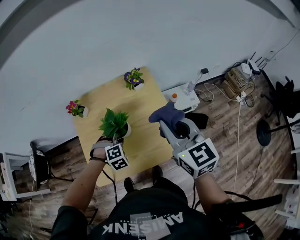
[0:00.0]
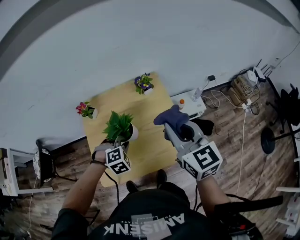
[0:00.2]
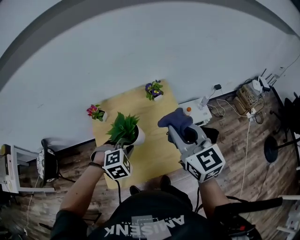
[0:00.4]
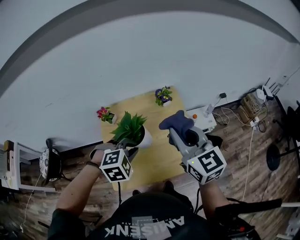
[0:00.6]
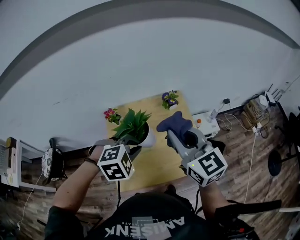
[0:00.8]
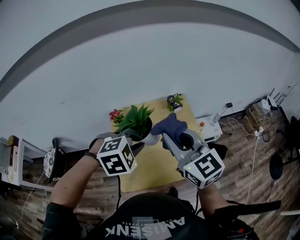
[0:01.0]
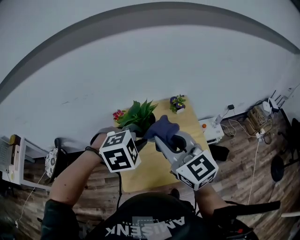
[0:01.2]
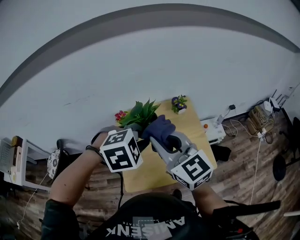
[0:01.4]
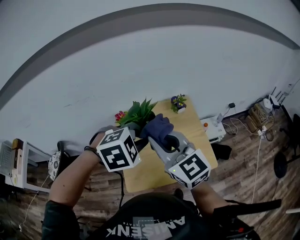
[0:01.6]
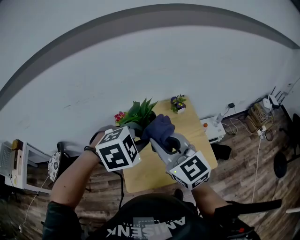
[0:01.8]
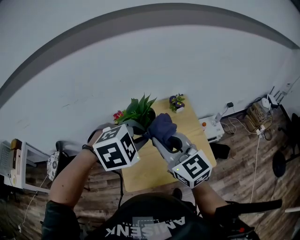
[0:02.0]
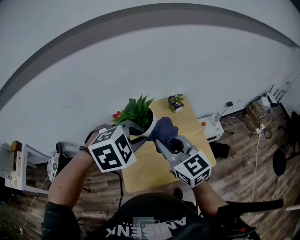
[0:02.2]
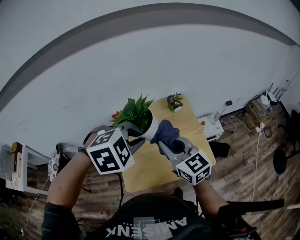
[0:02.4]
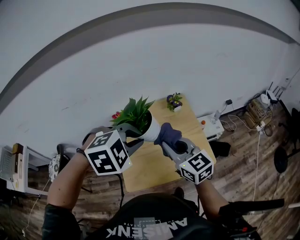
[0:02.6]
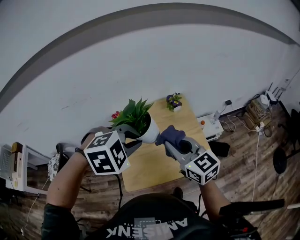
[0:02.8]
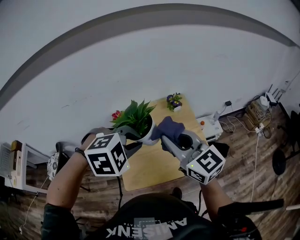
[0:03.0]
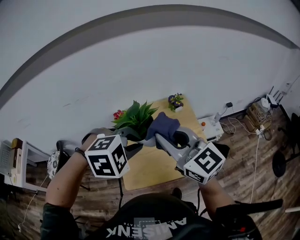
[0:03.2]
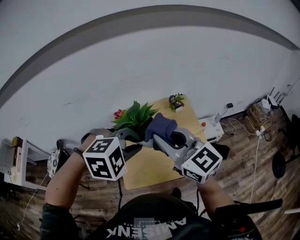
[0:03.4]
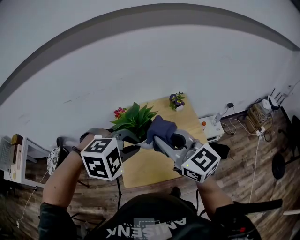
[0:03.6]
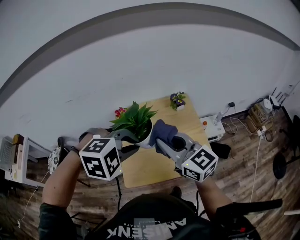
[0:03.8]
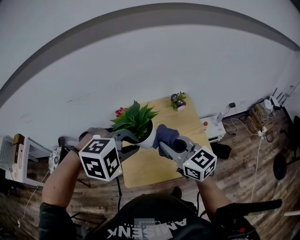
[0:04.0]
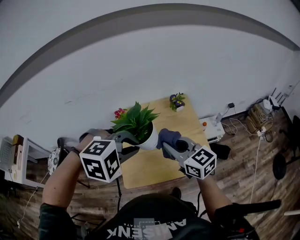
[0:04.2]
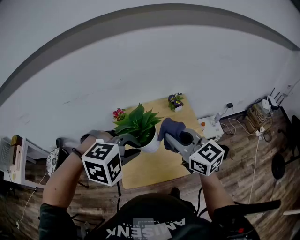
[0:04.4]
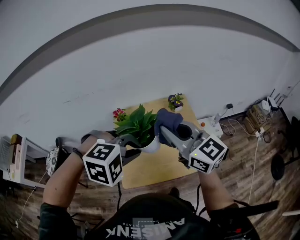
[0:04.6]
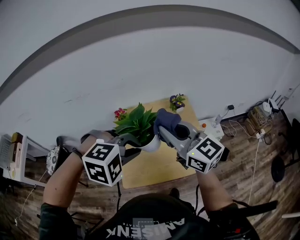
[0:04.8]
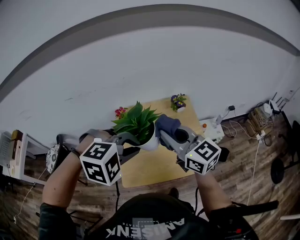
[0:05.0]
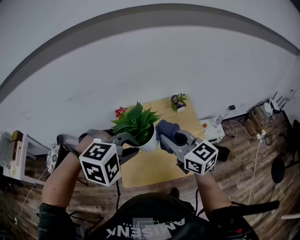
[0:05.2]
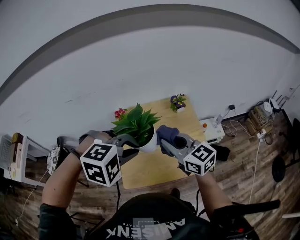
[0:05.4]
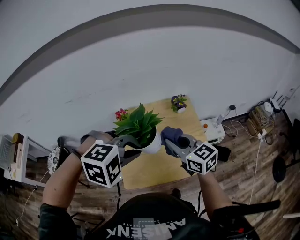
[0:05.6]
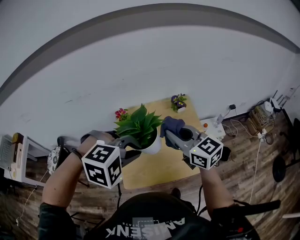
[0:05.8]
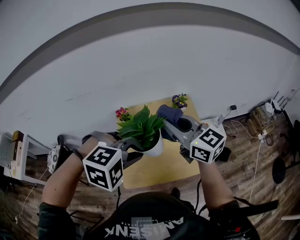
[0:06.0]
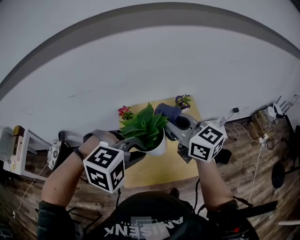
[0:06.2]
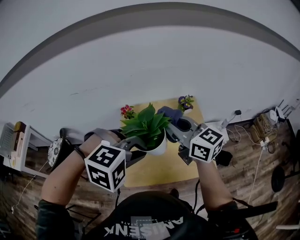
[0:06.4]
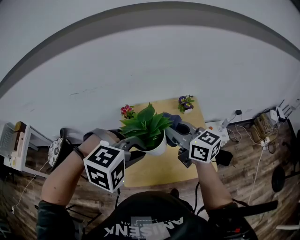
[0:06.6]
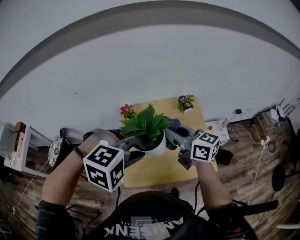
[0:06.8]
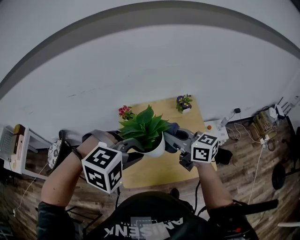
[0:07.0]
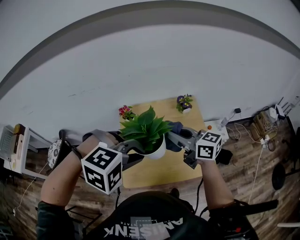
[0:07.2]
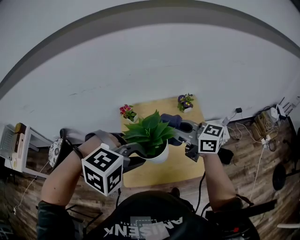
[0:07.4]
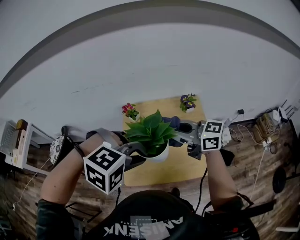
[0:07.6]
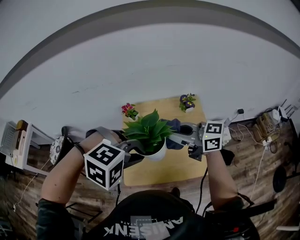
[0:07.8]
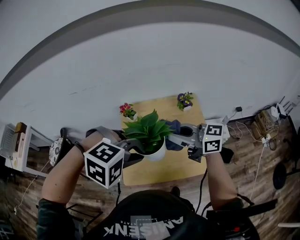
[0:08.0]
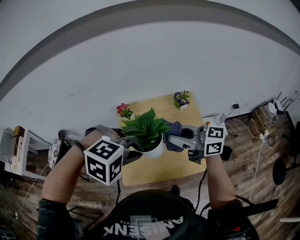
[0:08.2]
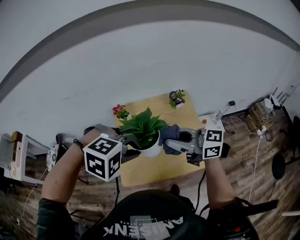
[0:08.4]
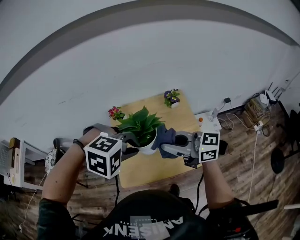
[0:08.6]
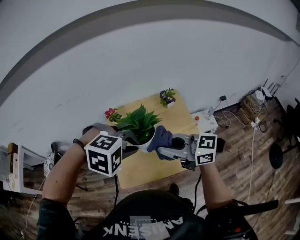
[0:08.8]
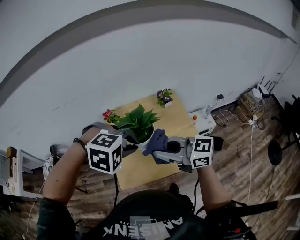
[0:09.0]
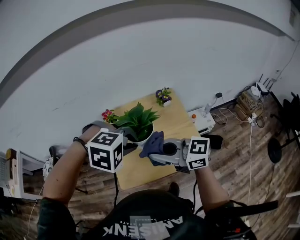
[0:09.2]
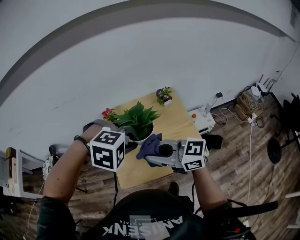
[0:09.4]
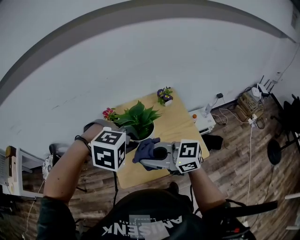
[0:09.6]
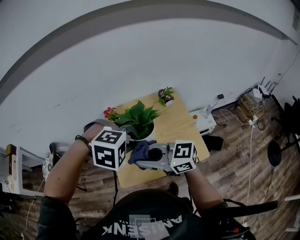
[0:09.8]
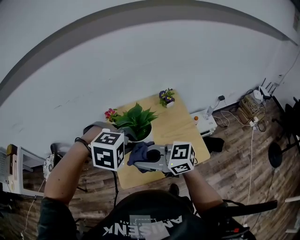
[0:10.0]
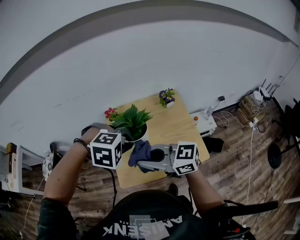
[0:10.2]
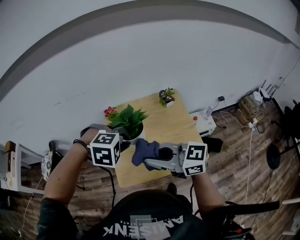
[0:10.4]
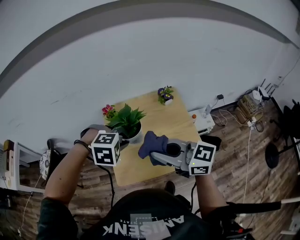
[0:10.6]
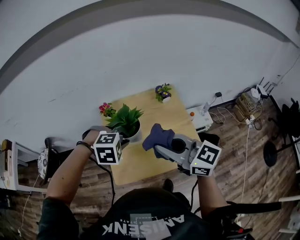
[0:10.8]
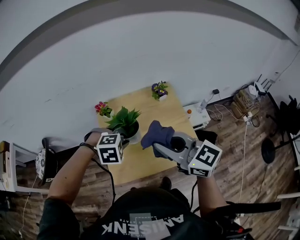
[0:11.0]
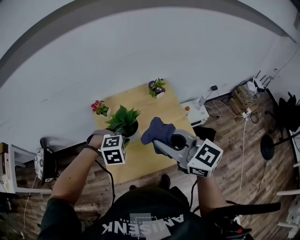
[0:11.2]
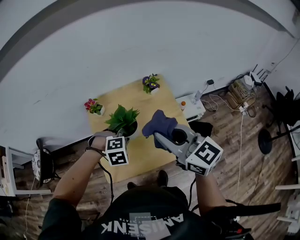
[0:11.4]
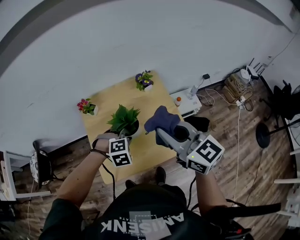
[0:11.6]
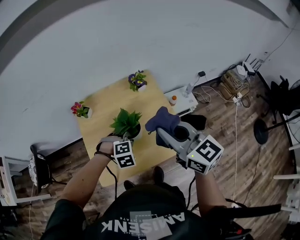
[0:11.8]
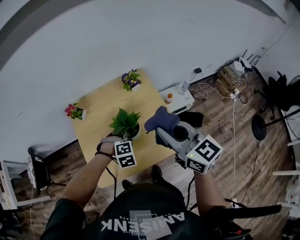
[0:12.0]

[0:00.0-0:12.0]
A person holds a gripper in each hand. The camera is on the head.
0:00.0 to 0:01.6: The right gripper shifts some 25 cm to the left and upward, and turns by some 30 degrees, while the left gripper heads upward, covering about 30 cm.
0:01.6 to 0:03.0: The right gripper goes some 5 cm to the right, and moves approximately 10 cm downward and comes back.
0:03.0 to 0:04.4: The right gripper reaches approximately 10 cm downward, then returns.
0:04.4 to 0:06.0: The right gripper goes up and down, approximately 10 cm each way, reversing 2 times.
0:06.0 to 0:07.6: The right gripper shifts roughly 5 cm downward, and swivels some 30 degrees.
0:07.6 to 0:09.0: The left gripper shifts by about 5 cm. Meanwhile the right gripper ends up some 10 cm from where it was.
0:09.0 to 0:10.4: The left gripper ends up about 5 cm from where it was.
0:10.4 to 0:12.0: The right gripper travels to the right by approximately 20 cm, and rotates some 40 degrees. The left gripper goes some 25 cm downward and to the right.

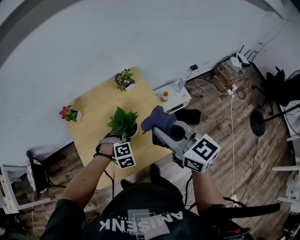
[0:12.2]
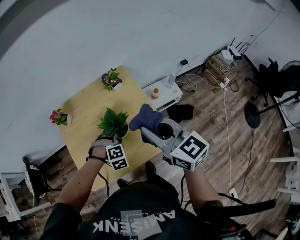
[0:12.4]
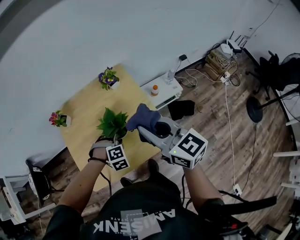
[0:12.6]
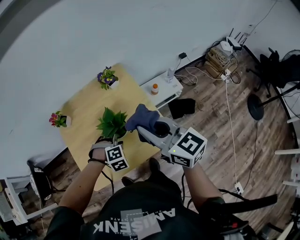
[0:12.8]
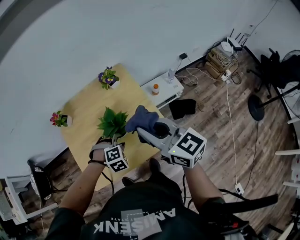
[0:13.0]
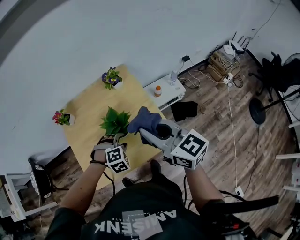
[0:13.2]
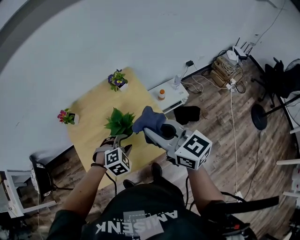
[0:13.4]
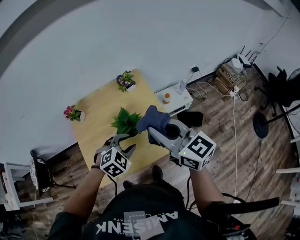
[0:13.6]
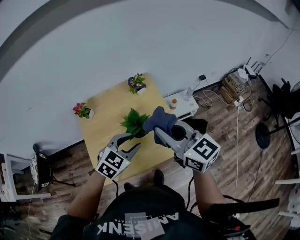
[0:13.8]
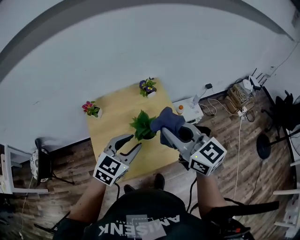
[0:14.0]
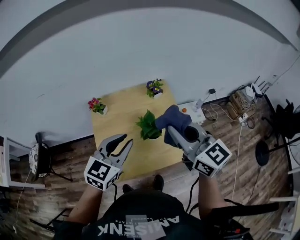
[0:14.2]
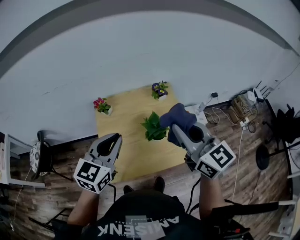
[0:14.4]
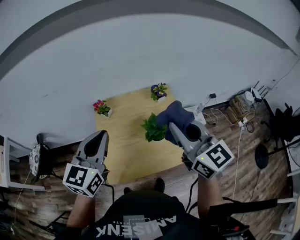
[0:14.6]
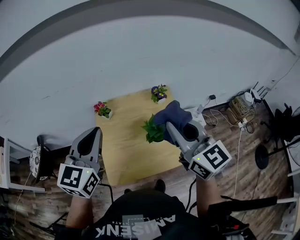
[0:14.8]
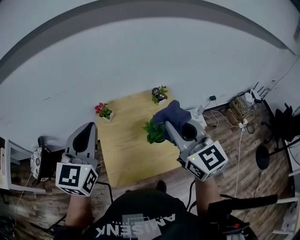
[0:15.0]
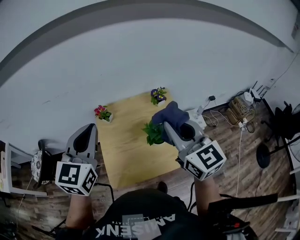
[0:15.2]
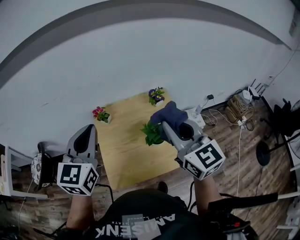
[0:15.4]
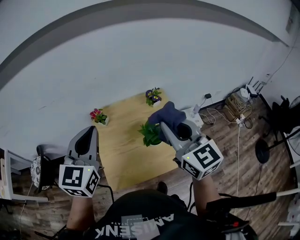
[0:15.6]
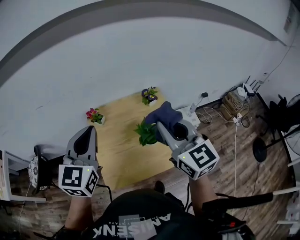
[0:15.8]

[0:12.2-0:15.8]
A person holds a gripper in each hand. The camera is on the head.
0:12.2 to 0:14.0: The right gripper shifts some 5 cm to the left and upward. The left gripper goes about 20 cm upward, angles its fingers upward, by roughly 40 degrees, and opens up.
0:14.0 to 0:15.8: The right gripper is displaced upward by approximately 5 cm. The left gripper moves upward and to the left, roughly 25 cm, swivels approximately 40 degrees, and closes its fingers.

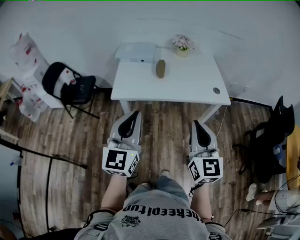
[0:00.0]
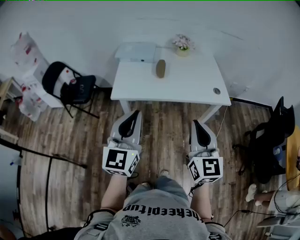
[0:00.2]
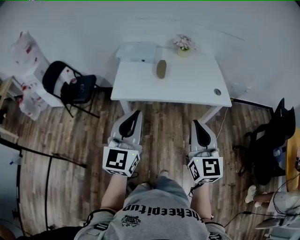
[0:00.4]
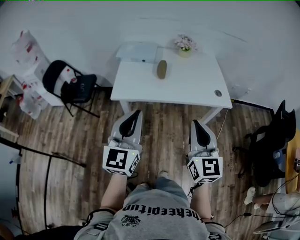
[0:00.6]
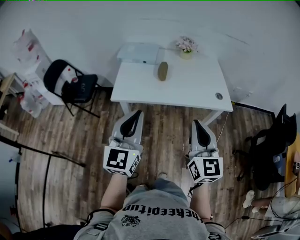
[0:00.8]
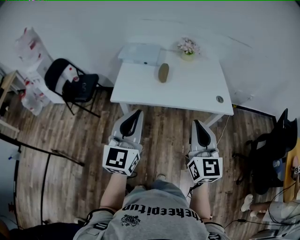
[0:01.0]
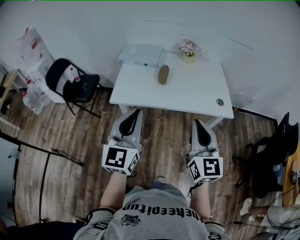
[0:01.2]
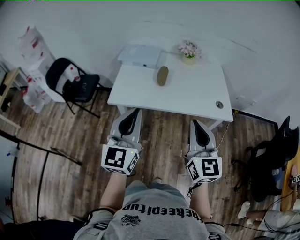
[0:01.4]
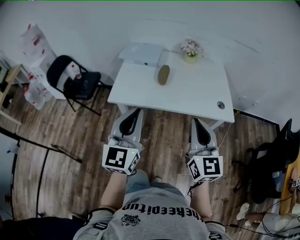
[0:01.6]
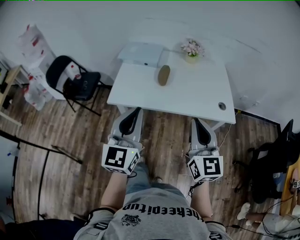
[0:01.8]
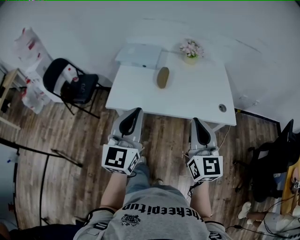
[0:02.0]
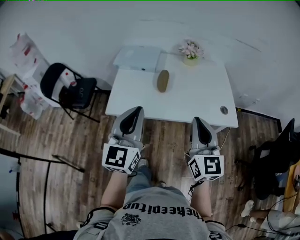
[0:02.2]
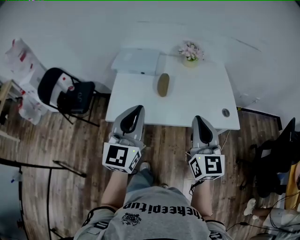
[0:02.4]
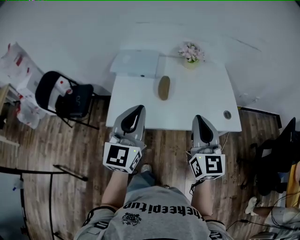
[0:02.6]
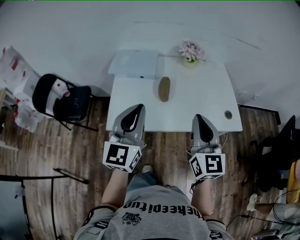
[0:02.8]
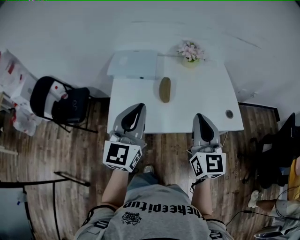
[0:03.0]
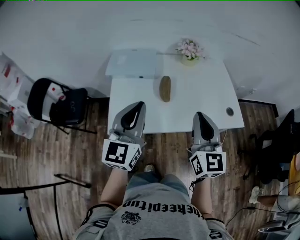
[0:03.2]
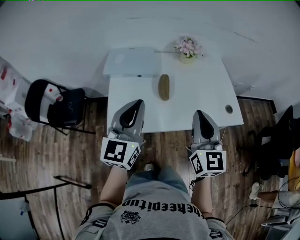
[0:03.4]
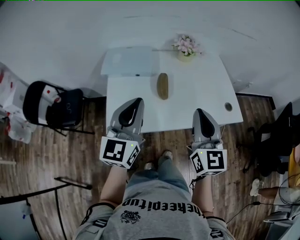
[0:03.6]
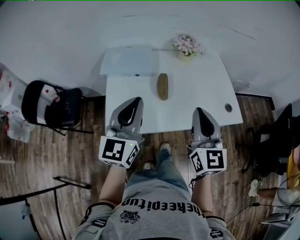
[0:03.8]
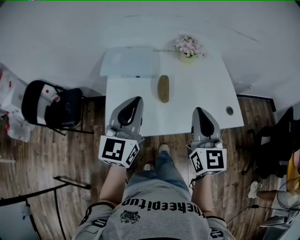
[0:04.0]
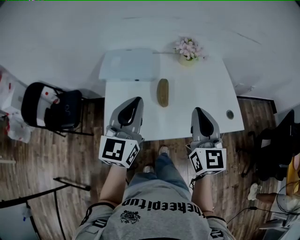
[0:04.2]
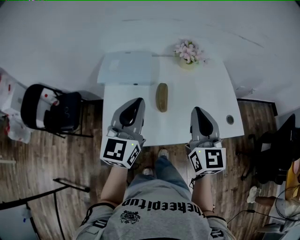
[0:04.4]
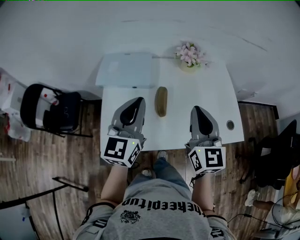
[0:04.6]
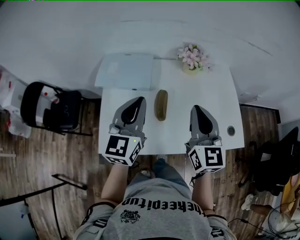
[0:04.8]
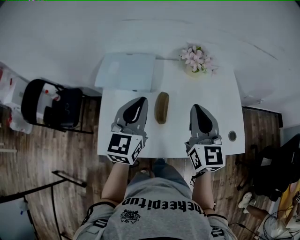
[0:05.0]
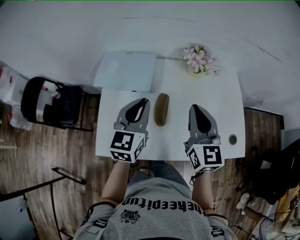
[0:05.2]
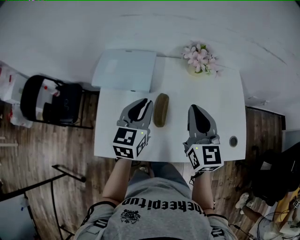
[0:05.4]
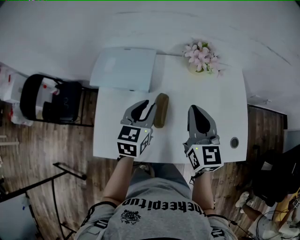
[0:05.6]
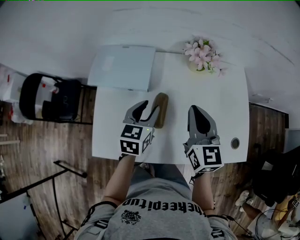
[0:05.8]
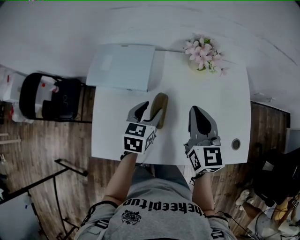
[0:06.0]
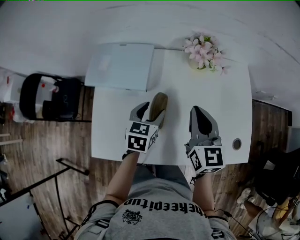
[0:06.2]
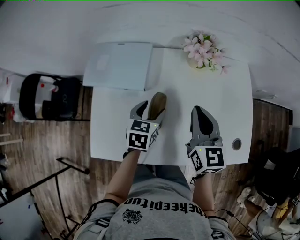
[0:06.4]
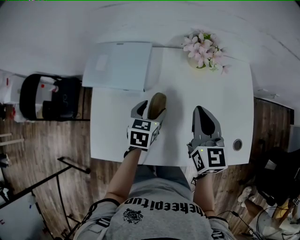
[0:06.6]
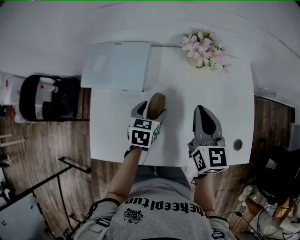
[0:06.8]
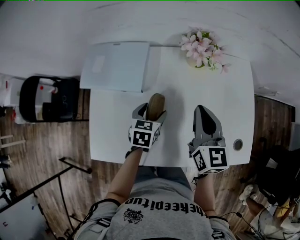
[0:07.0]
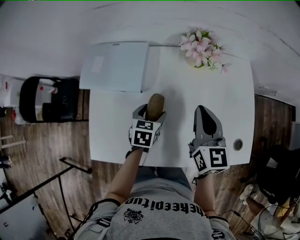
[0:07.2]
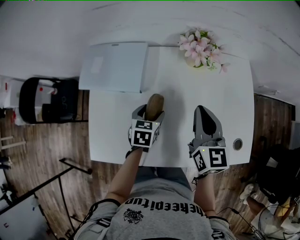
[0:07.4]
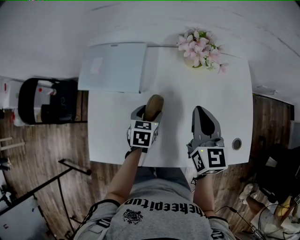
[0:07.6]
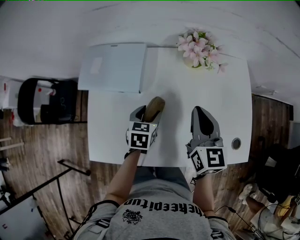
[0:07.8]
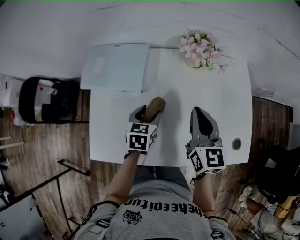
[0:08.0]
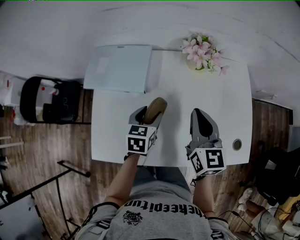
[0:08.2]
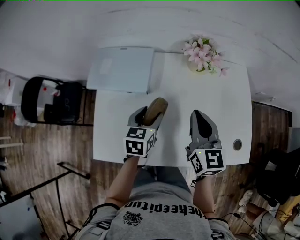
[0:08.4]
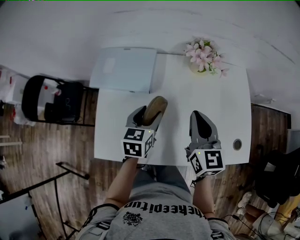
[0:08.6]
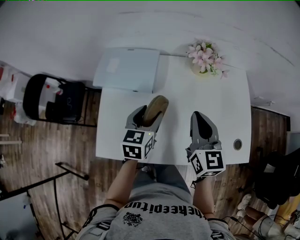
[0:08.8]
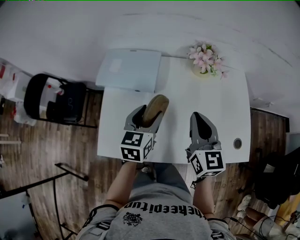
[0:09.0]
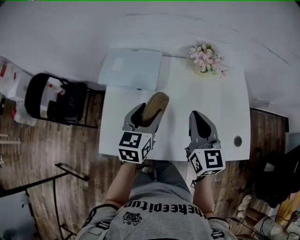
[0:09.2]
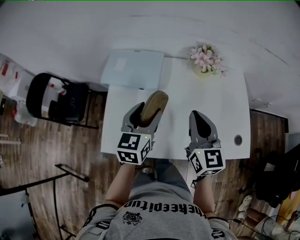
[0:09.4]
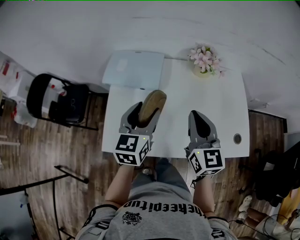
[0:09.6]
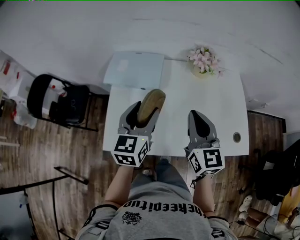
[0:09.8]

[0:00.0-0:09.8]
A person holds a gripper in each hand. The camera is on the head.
0:00.0 to 0:01.4: Both grippers move forward, roughly 10 cm.
0:01.4 to 0:02.8: Both grippers travel together forward, roughly 20 cm.
0:02.8 to 0:04.2: The grippers both shift forward by about 10 cm.
0:04.2 to 0:05.6: The left gripper moves forward and downward, about 25 cm, and swivels approximately 30 degrees, while the right gripper moves forward, roughly 20 cm.
0:05.6 to 0:07.0: The left gripper is displaced downward by approximately 15 cm, turns by some 20 degrees, and opens up. Meanwhile the right gripper shifts by approximately 10 cm.
0:07.0 to 0:08.4: The left gripper is displaced upward by about 5 cm.
0:08.4 to 0:09.8: The left gripper is displaced upward, backward and to the left by some 20 cm, and rotates roughly 20 degrees; the right gripper heads backward, to the left and upward, covering approximately 15 cm.
